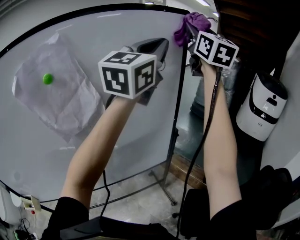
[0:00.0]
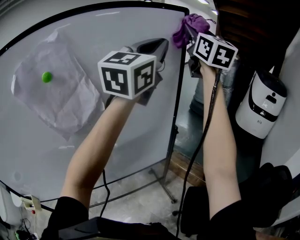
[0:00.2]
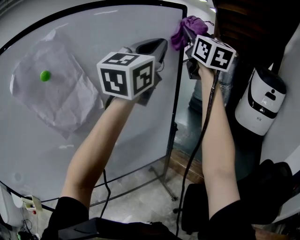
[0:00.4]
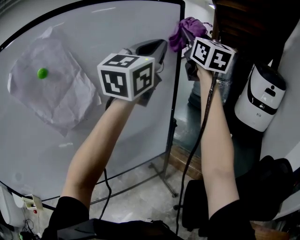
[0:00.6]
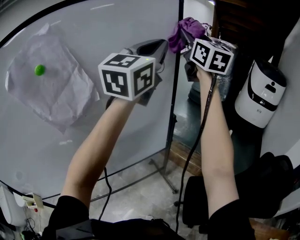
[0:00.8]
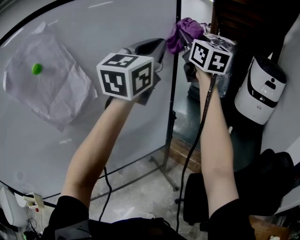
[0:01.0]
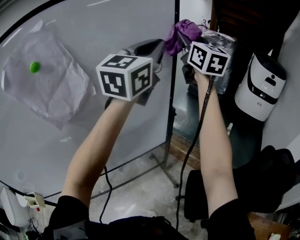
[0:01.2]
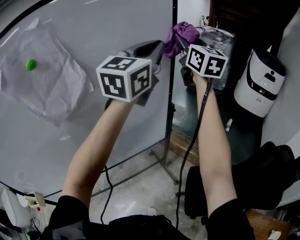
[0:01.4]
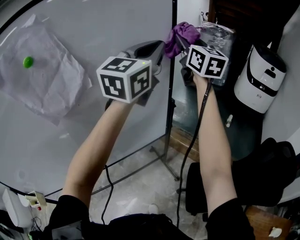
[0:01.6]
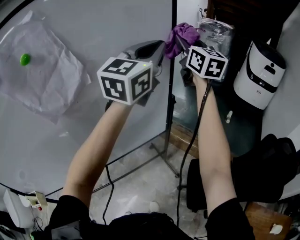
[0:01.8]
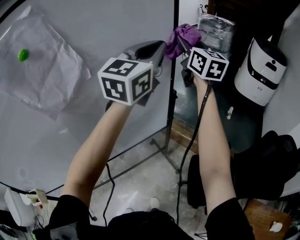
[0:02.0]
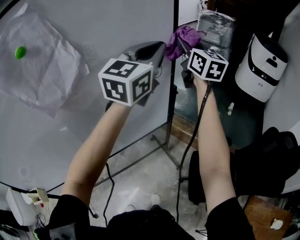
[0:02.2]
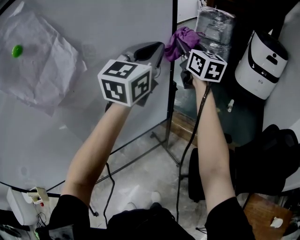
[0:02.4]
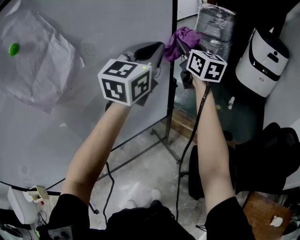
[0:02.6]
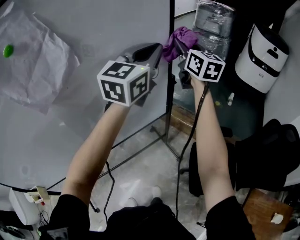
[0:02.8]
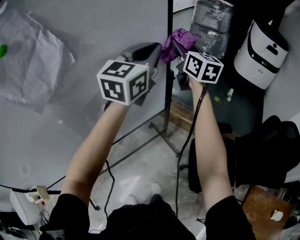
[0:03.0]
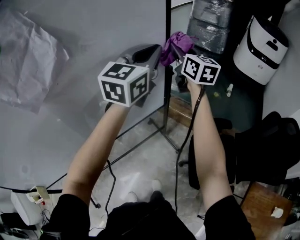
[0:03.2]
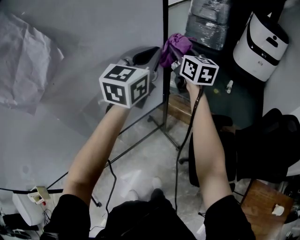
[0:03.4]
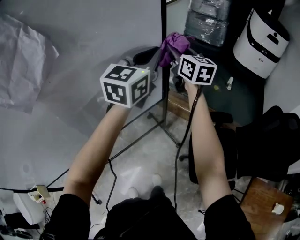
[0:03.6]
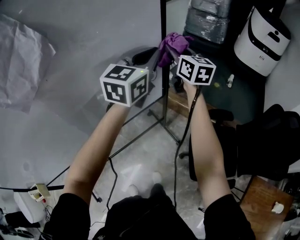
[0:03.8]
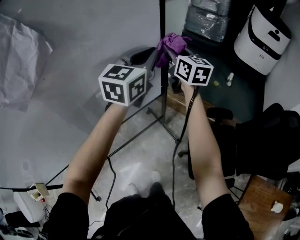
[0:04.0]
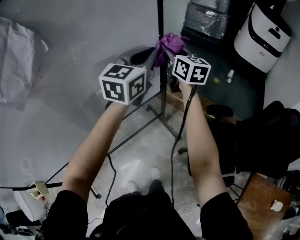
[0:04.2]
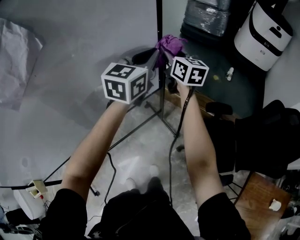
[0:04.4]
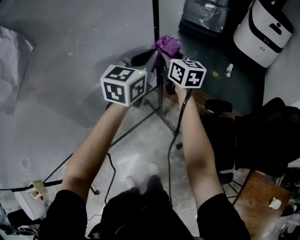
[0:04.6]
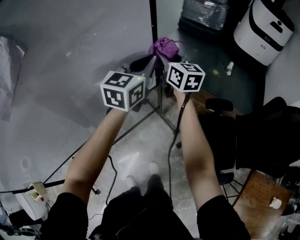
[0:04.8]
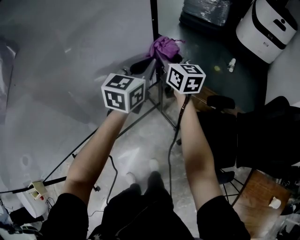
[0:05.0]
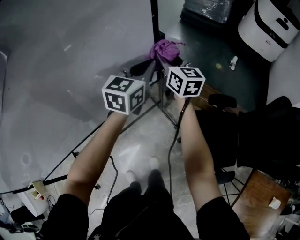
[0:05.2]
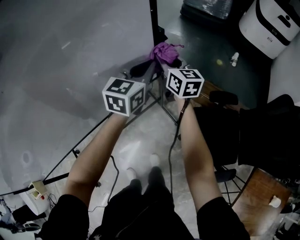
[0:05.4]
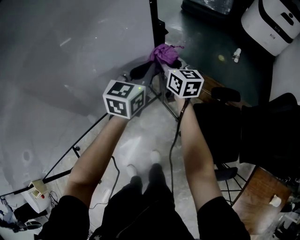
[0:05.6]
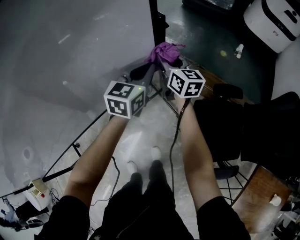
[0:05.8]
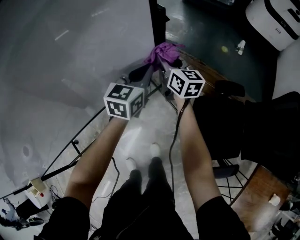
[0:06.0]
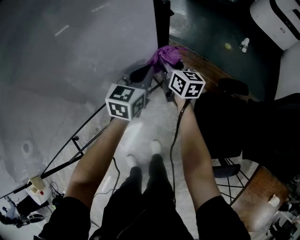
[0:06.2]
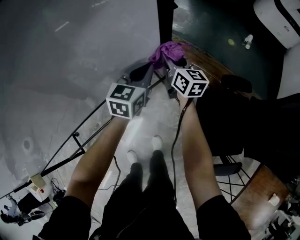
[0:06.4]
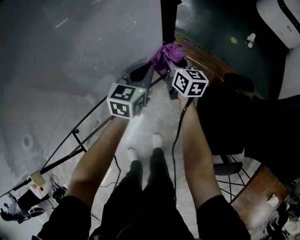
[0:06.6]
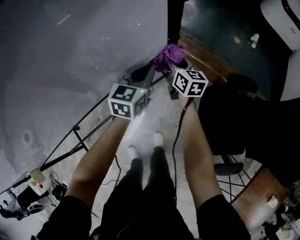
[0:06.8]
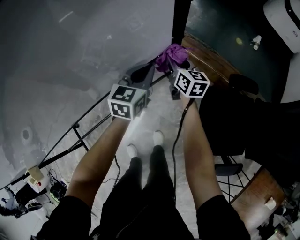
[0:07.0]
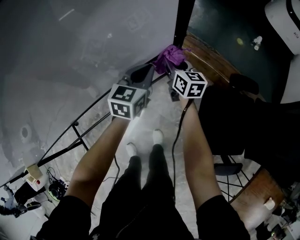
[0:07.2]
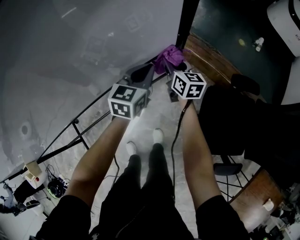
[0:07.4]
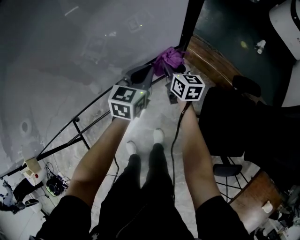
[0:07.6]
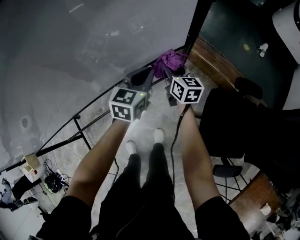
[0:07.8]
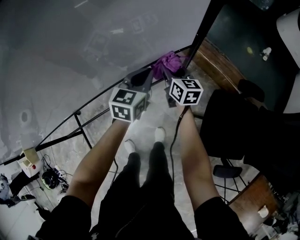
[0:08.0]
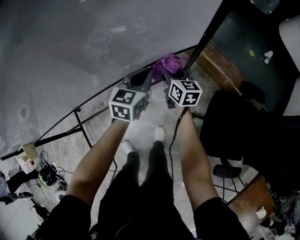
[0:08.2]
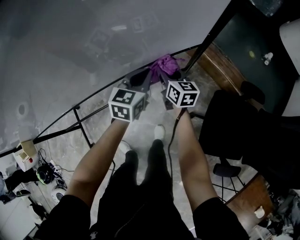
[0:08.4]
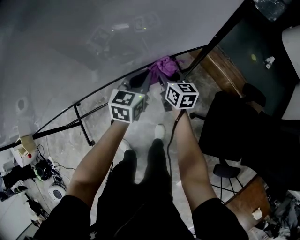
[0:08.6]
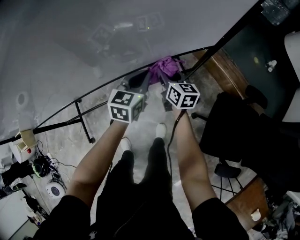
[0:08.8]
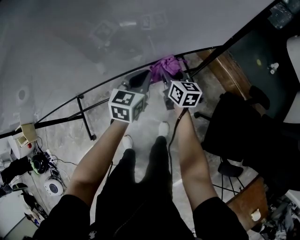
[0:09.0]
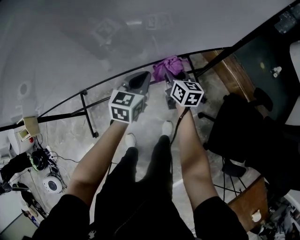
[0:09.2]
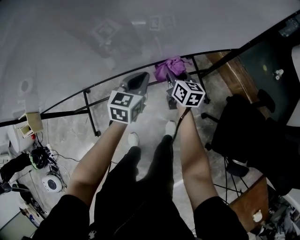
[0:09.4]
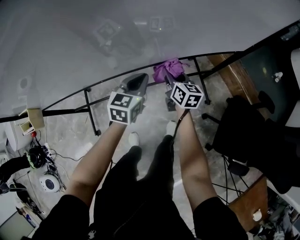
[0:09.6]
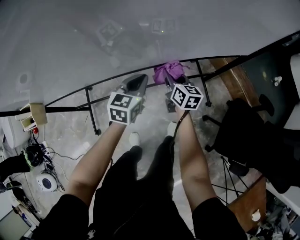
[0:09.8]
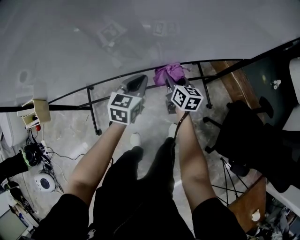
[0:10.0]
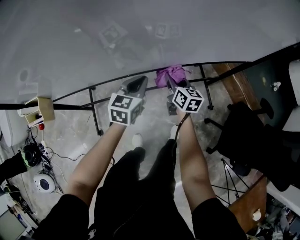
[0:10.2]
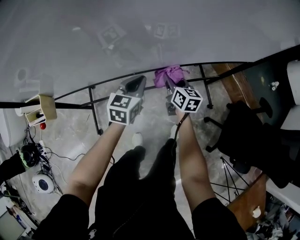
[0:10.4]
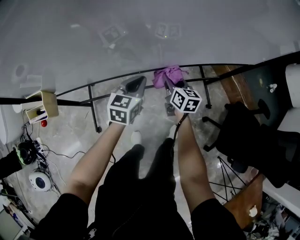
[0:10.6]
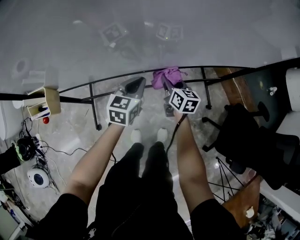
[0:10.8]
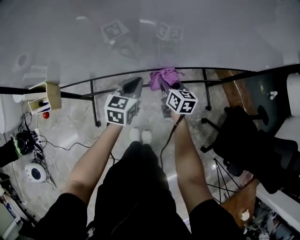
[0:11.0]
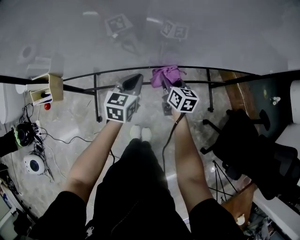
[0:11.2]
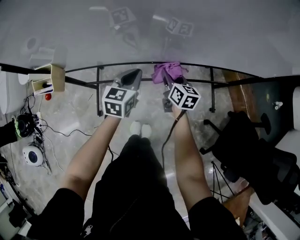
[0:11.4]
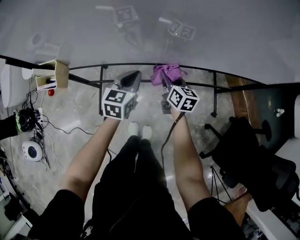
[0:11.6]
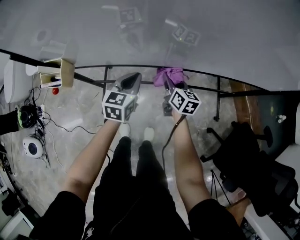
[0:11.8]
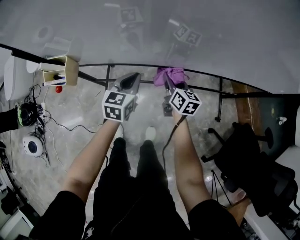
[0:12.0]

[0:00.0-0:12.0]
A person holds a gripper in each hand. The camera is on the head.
0:00.0 to 0:01.6: Both grippers travel together downward, approximately 15 cm.
0:01.6 to 0:03.0: Both grippers travel together downward, some 15 cm.
0:03.0 to 0:04.4: Both grippers travel together downward, roughly 15 cm.
0:04.4 to 0:06.0: The grippers both shift downward by approximately 25 cm.
0:06.0 to 0:07.6: Both grippers travel together downward and to the left, about 15 cm.
0:07.6 to 0:09.0: Both grippers travel together to the left and backward, about 20 cm.
0:09.0 to 0:10.4: The grippers both shift to the left by some 25 cm.
0:10.4 to 0:12.0: The two grippers go approximately 15 cm to the left.

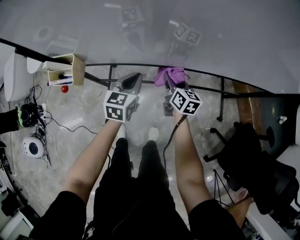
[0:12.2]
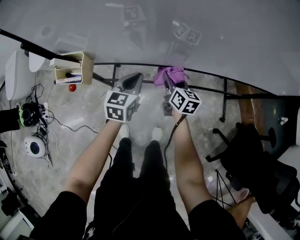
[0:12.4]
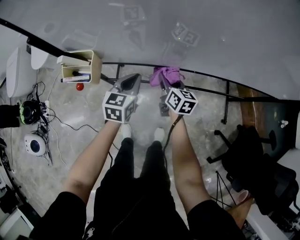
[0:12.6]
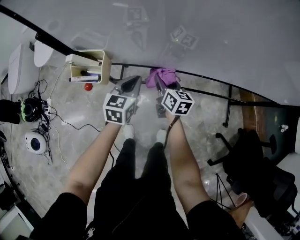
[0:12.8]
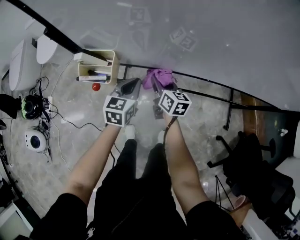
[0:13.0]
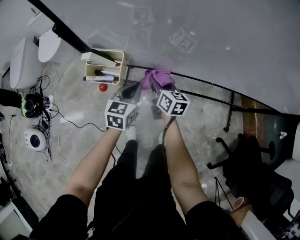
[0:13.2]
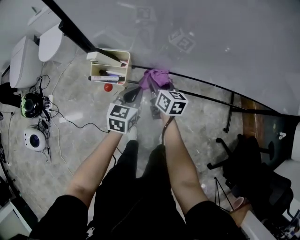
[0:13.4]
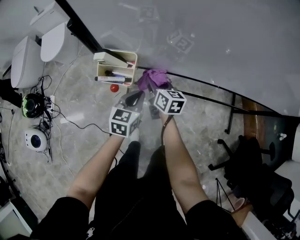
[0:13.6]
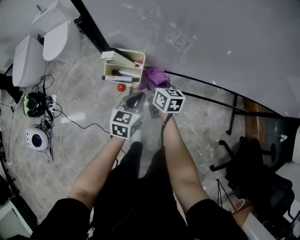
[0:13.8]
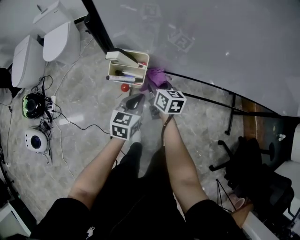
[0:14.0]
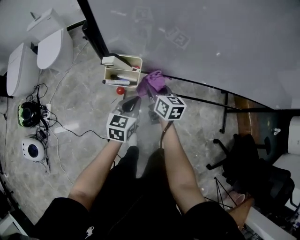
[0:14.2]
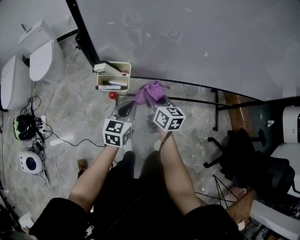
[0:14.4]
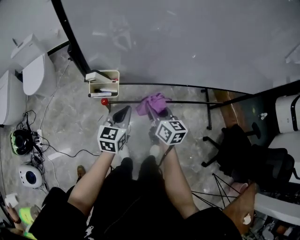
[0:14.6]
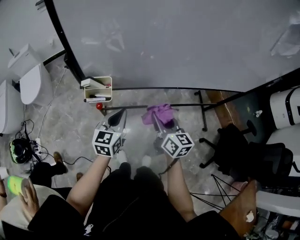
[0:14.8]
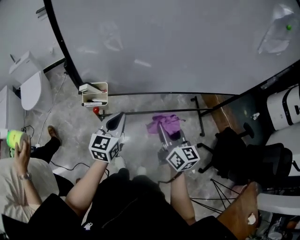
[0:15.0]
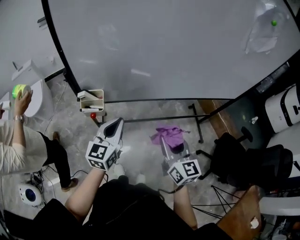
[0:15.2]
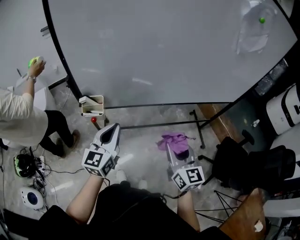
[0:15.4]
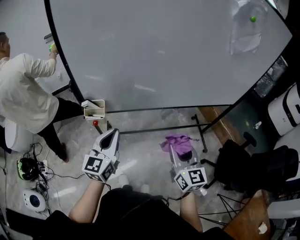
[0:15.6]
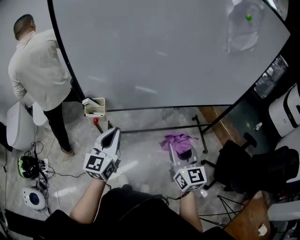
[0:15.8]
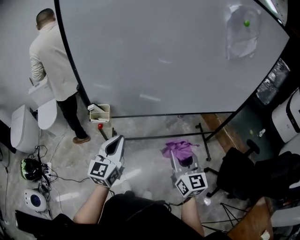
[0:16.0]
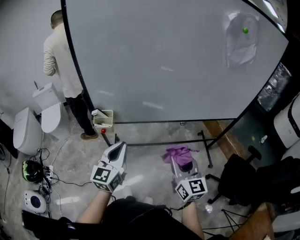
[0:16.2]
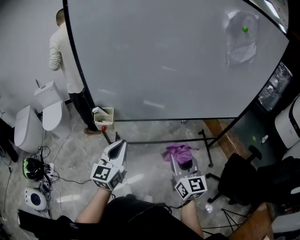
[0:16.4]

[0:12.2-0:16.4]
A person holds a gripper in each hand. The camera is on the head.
0:12.2 to 0:13.6: The left gripper is displaced to the left by approximately 20 cm. Meanwhile the right gripper is displaced to the left by roughly 30 cm.
0:13.6 to 0:15.0: The right gripper moves upward, backward and to the right, approximately 35 cm, and swivels about 30 degrees; the left gripper goes roughly 20 cm upward and backward, and rotates some 20 degrees.
0:15.0 to 0:16.4: The left gripper moves backward, upward and to the right, roughly 20 cm. The right gripper shifts approximately 20 cm backward, to the right and upward.

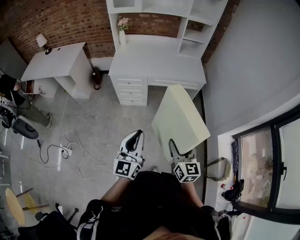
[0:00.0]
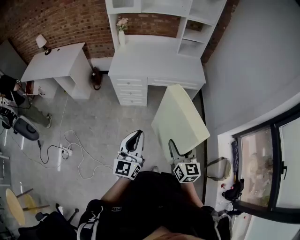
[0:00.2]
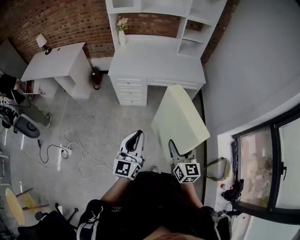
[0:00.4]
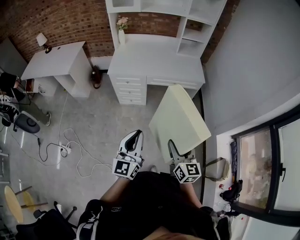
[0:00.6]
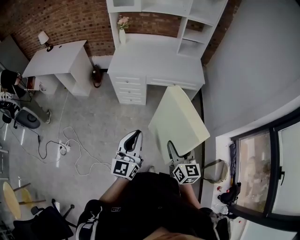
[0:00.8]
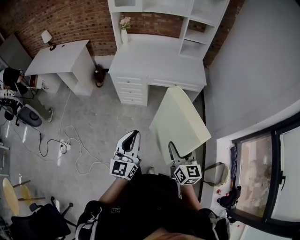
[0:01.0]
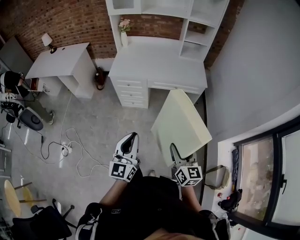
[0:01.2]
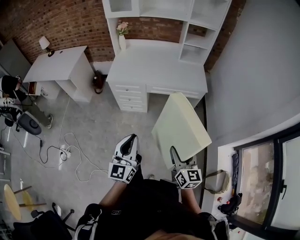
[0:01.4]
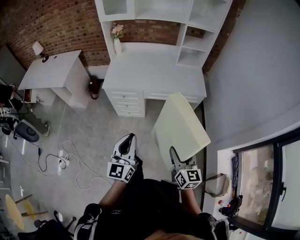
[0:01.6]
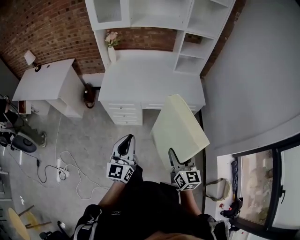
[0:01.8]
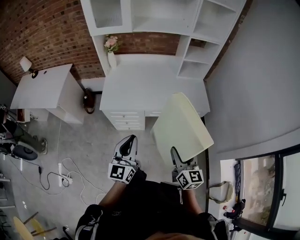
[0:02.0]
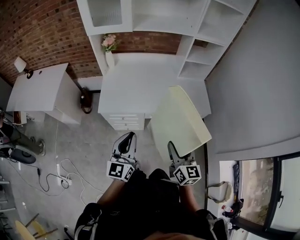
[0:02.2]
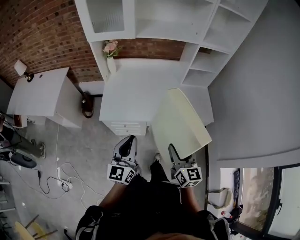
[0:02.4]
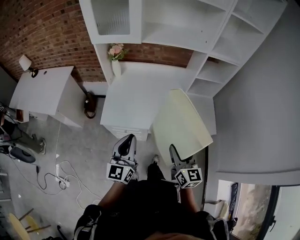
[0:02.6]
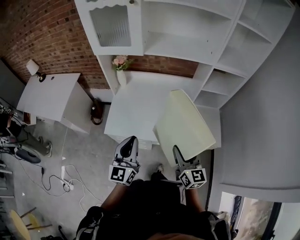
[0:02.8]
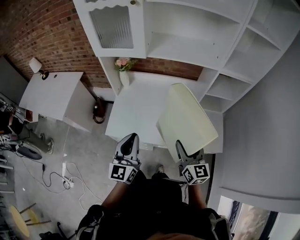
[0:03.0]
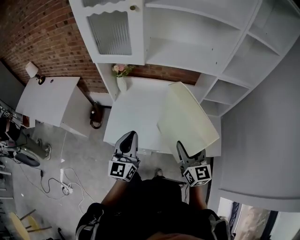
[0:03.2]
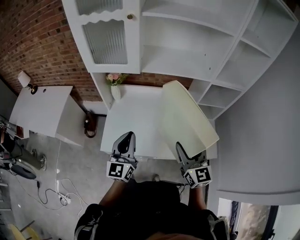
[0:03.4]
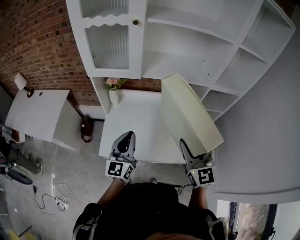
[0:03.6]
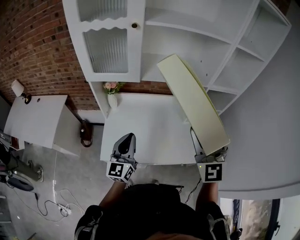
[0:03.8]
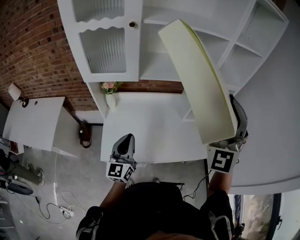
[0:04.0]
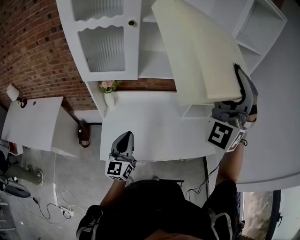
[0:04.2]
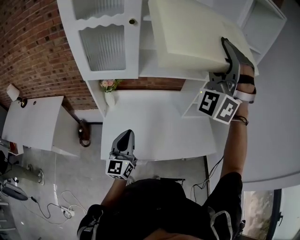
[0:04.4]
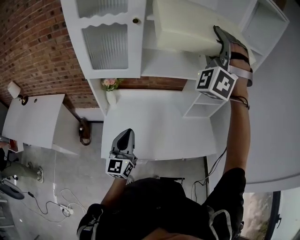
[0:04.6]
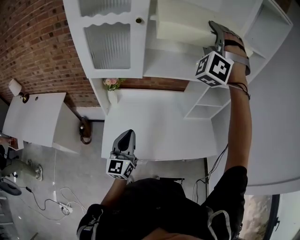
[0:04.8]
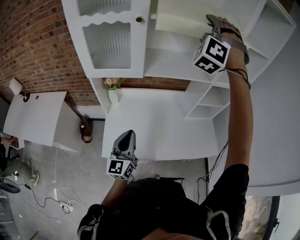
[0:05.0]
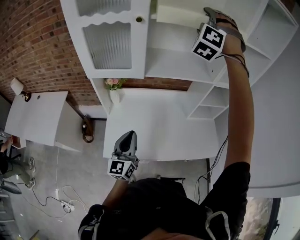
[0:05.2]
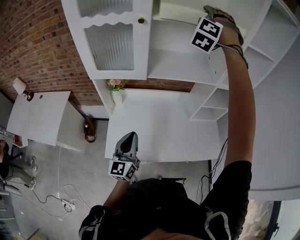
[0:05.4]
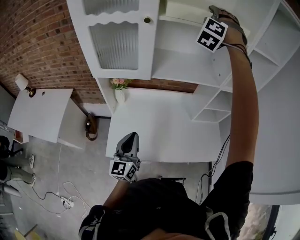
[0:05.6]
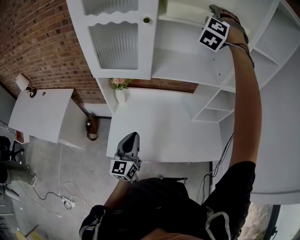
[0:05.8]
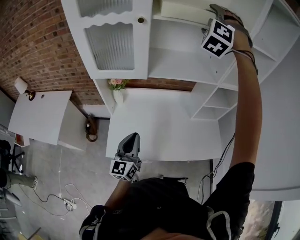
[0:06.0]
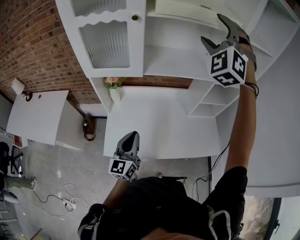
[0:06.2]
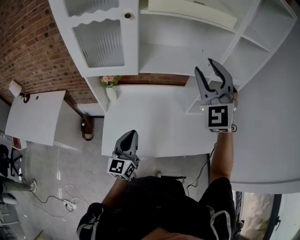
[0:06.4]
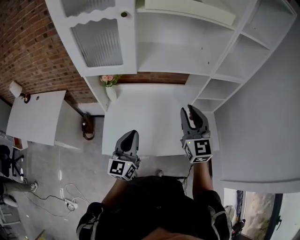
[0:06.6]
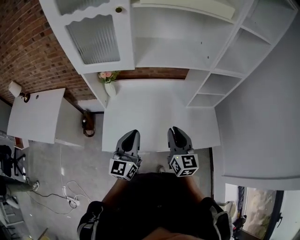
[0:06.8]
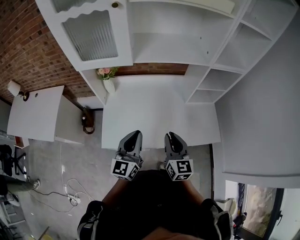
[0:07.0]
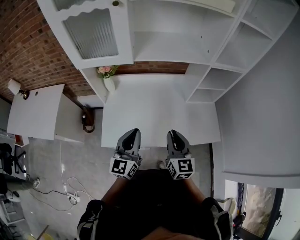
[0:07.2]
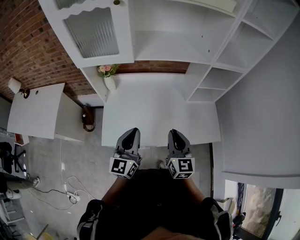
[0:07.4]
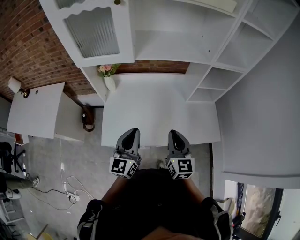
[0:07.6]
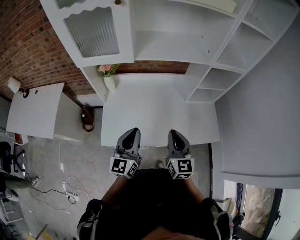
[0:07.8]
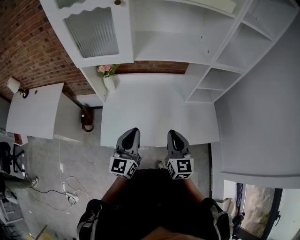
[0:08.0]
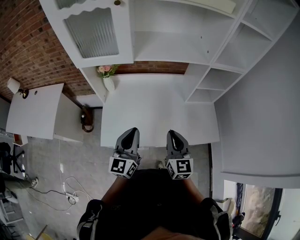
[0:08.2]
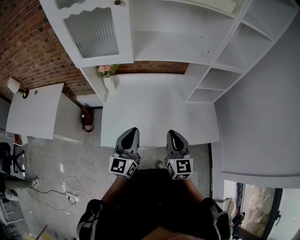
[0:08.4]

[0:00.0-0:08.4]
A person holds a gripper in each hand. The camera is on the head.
0:00.0 to 0:01.4: The left gripper goes about 5 cm forward, while the right gripper is displaced to the right and forward by approximately 10 cm.
0:01.4 to 0:02.8: The two grippers travel together, forward, approximately 50 cm.
0:02.8 to 0:04.2: The right gripper heads upward and forward, covering approximately 40 cm, and rotates around the line of its fingers by approximately 80 degrees, counterclockwise from behind. Meanwhile the left gripper heads forward, covering some 15 cm.
0:04.2 to 0:05.6: The right gripper travels forward by roughly 30 cm, and points its fingers roughly 30 degrees further downward.
0:05.6 to 0:07.0: The left gripper goes some 10 cm to the right; the right gripper heads backward and downward, covering about 60 cm, rolls clockwise, seen from behind, by roughly 90 degrees, and closes its fingers.
0:07.0 to 0:08.4: There are only small adjustments of the grippers.
